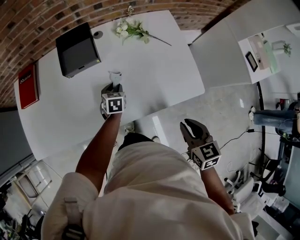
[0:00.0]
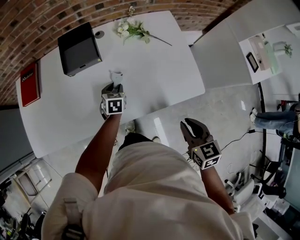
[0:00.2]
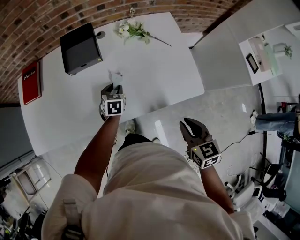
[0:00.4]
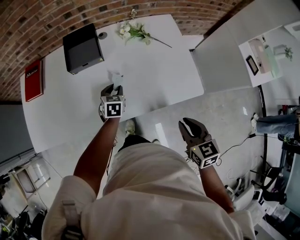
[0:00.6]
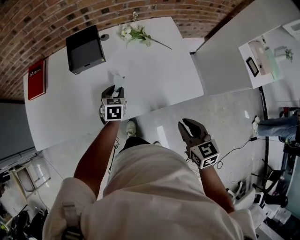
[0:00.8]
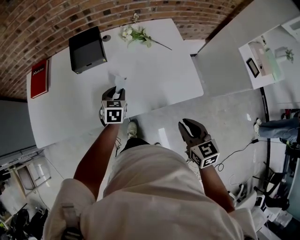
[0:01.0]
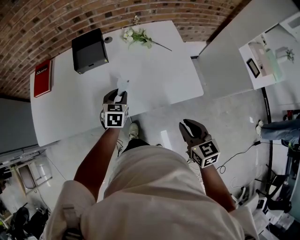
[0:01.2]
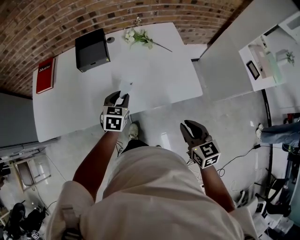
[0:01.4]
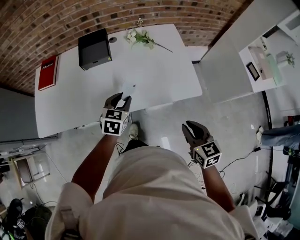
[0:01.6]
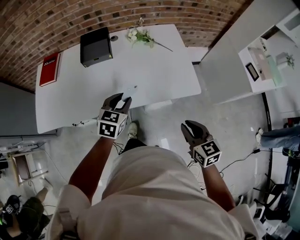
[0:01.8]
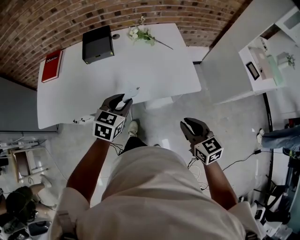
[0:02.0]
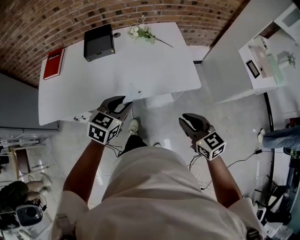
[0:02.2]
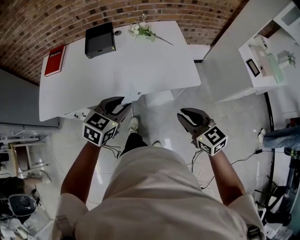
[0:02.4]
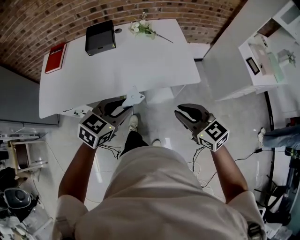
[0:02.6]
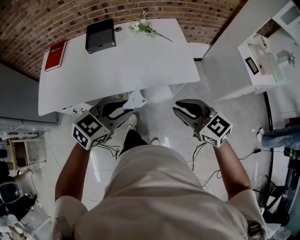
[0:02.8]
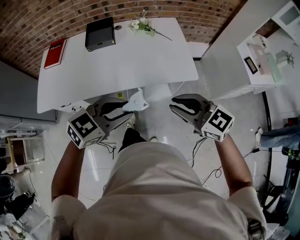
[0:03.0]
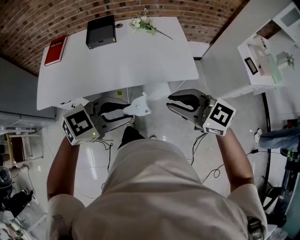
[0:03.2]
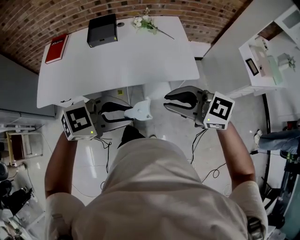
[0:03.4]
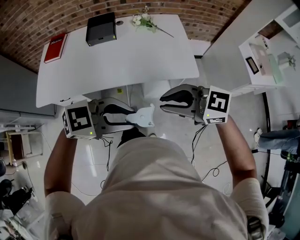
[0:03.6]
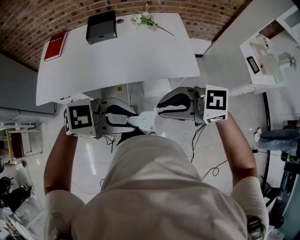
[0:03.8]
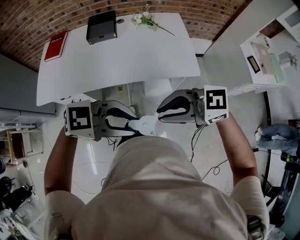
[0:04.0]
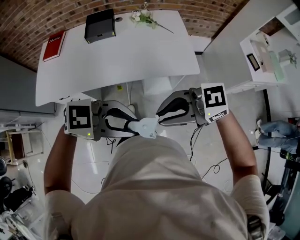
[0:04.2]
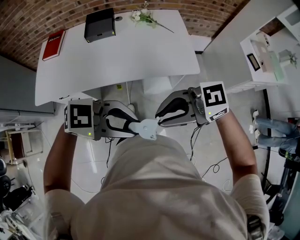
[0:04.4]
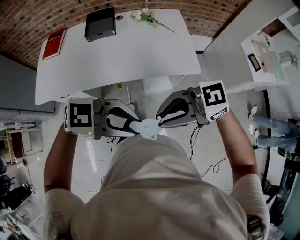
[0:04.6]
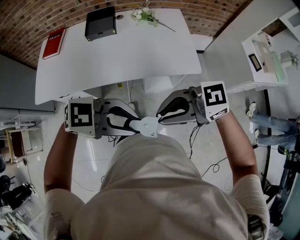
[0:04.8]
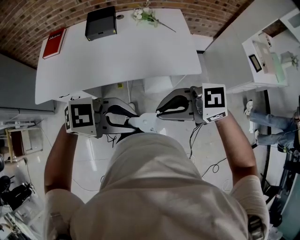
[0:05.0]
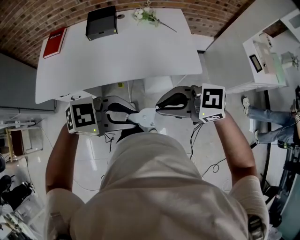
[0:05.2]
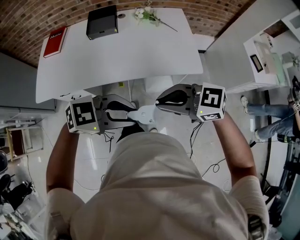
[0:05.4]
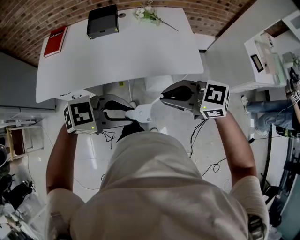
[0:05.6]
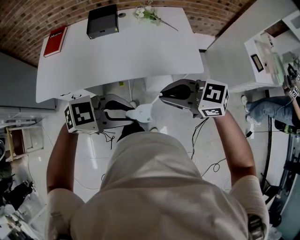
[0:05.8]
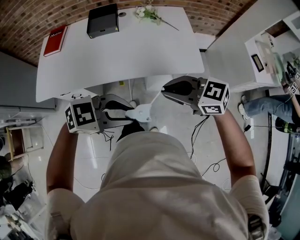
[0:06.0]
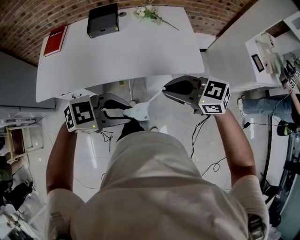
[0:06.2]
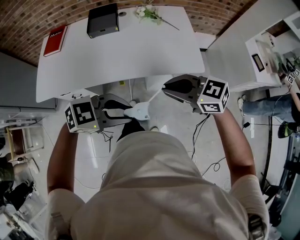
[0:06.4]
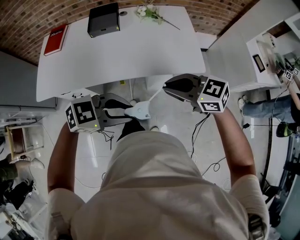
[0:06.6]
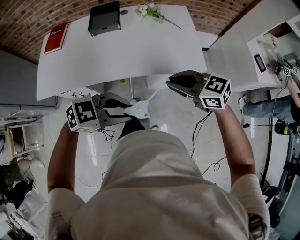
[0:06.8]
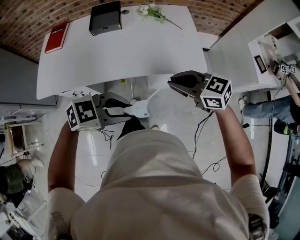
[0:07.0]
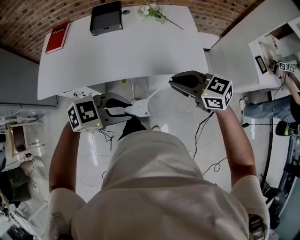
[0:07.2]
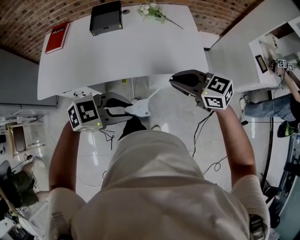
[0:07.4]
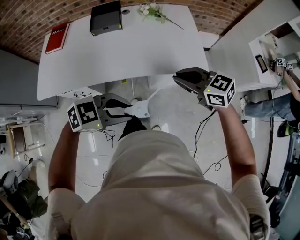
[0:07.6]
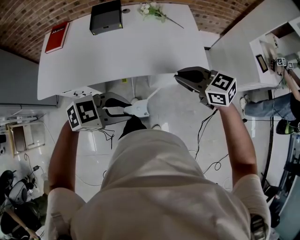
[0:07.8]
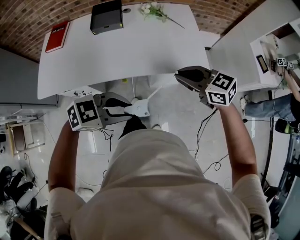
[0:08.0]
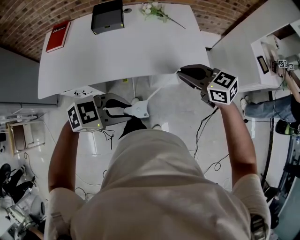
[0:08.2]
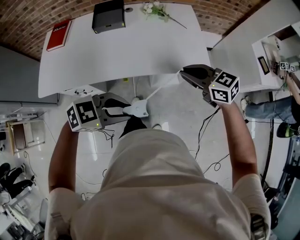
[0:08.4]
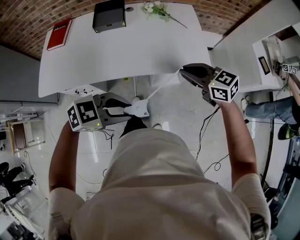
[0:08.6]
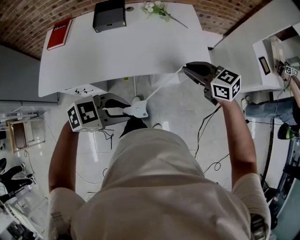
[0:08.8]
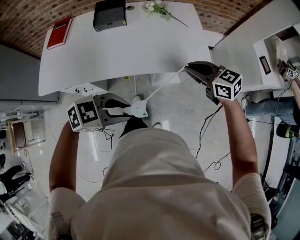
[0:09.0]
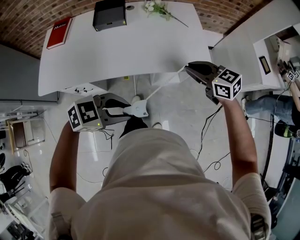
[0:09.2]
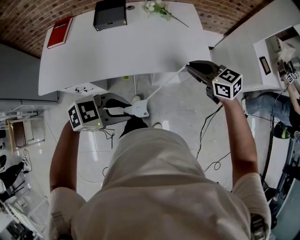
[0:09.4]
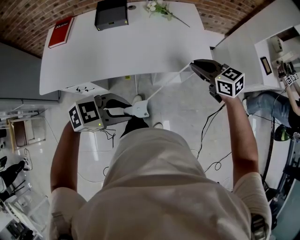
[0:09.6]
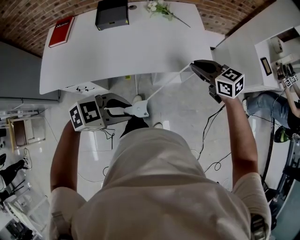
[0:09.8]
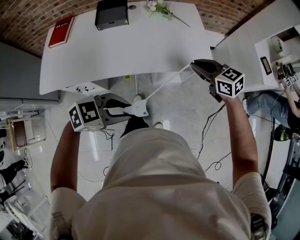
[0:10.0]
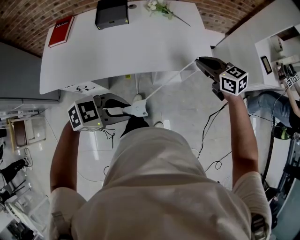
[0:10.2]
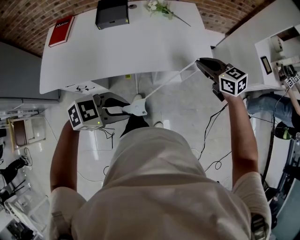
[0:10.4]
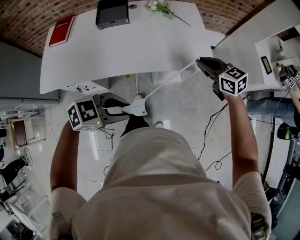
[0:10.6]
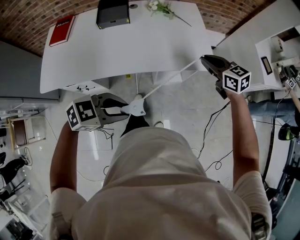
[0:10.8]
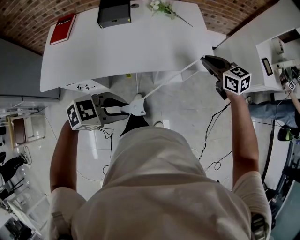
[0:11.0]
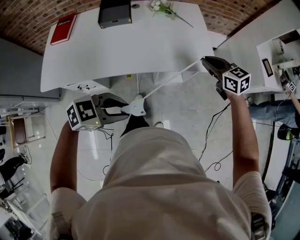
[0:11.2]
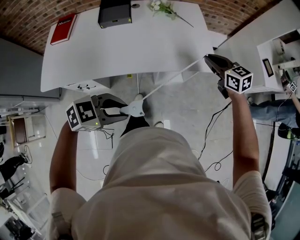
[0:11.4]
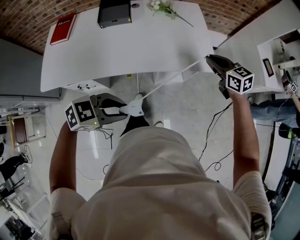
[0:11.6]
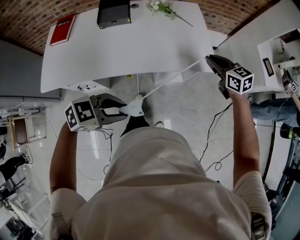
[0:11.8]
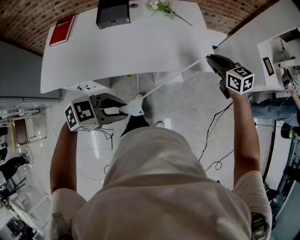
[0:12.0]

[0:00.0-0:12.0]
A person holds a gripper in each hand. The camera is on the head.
0:00.0 to 0:01.6: The right gripper moves backward, some 10 cm. The left gripper travels upward and backward by roughly 20 cm.
0:01.6 to 0:03.0: The left gripper goes about 25 cm backward and upward, and changes its angle by roughly 40 degrees. The right gripper shifts roughly 15 cm upward, backward and to the left, and swivels some 40 degrees.
0:03.0 to 0:04.4: The left gripper shifts by about 10 cm, and swivels about 40 degrees, while the right gripper changes place by about 10 cm, and swivels some 50 degrees.
0:04.4 to 0:06.0: The left gripper heads downward, covering approximately 5 cm. The right gripper moves roughly 10 cm, and changes its angle by approximately 30 degrees.
0:06.0 to 0:07.6: The right gripper ends up approximately 10 cm from where it was.
0:07.6 to 0:09.0: The right gripper changes place by about 5 cm.
0:09.0 to 0:10.4: The right gripper ends up about 5 cm from where it was.
0:10.4 to 0:12.0: The right gripper moves roughly 5 cm.

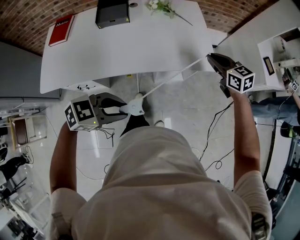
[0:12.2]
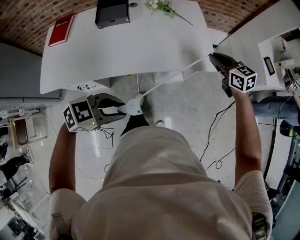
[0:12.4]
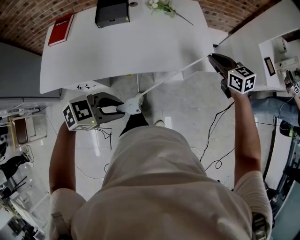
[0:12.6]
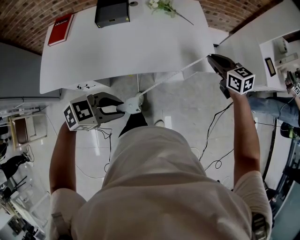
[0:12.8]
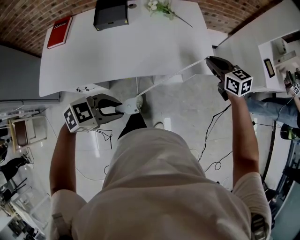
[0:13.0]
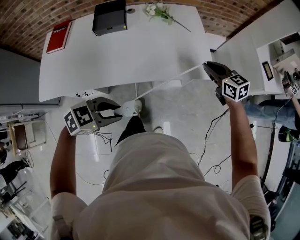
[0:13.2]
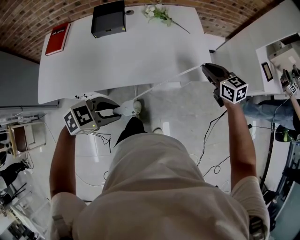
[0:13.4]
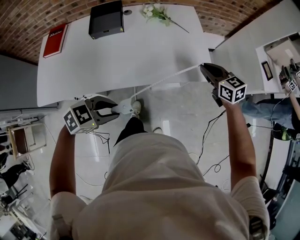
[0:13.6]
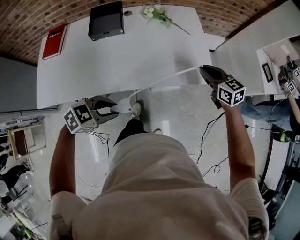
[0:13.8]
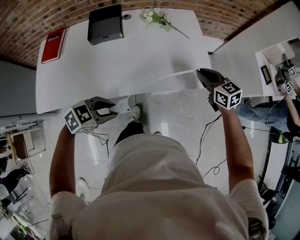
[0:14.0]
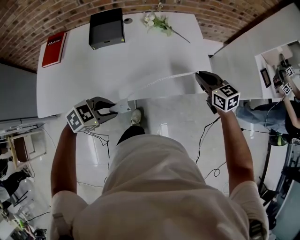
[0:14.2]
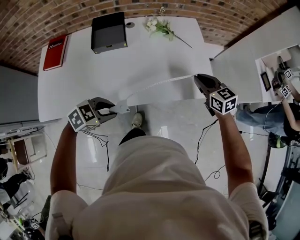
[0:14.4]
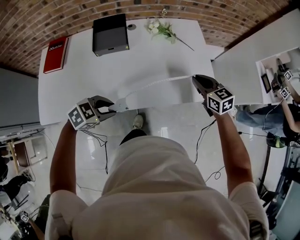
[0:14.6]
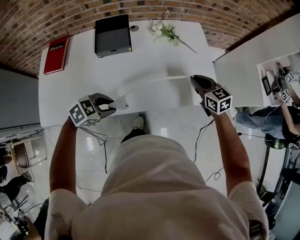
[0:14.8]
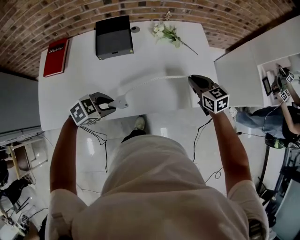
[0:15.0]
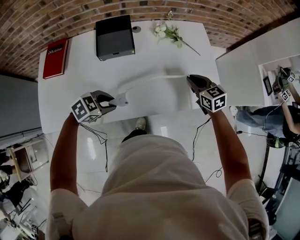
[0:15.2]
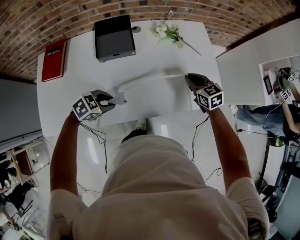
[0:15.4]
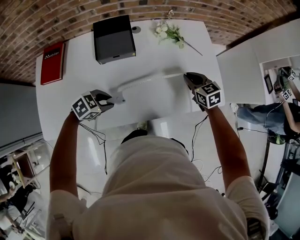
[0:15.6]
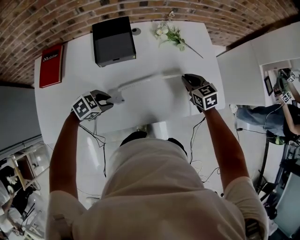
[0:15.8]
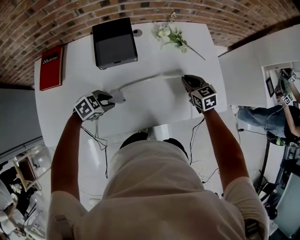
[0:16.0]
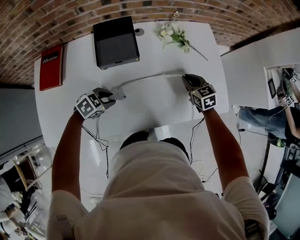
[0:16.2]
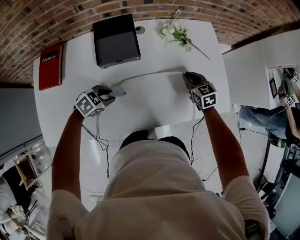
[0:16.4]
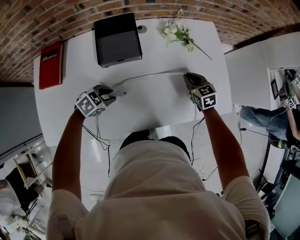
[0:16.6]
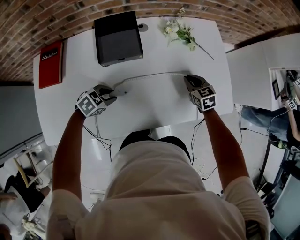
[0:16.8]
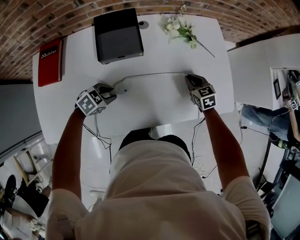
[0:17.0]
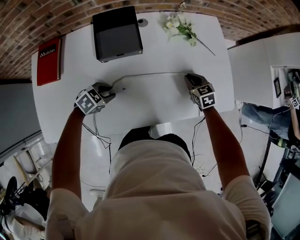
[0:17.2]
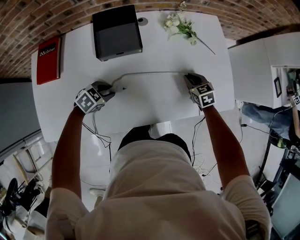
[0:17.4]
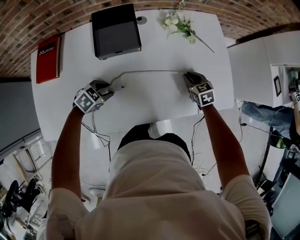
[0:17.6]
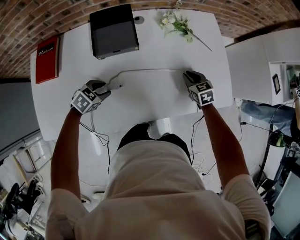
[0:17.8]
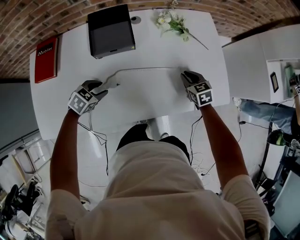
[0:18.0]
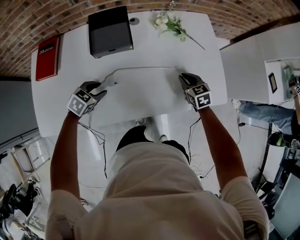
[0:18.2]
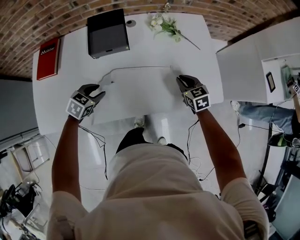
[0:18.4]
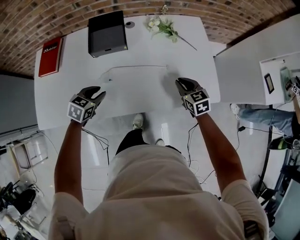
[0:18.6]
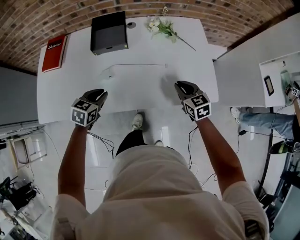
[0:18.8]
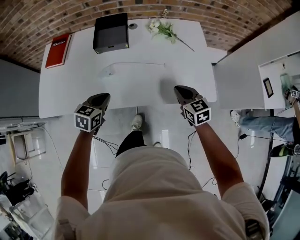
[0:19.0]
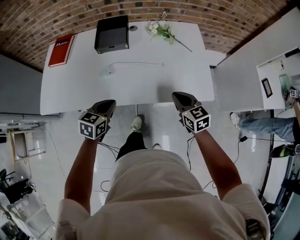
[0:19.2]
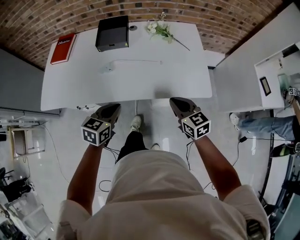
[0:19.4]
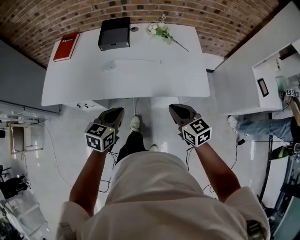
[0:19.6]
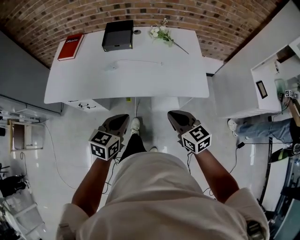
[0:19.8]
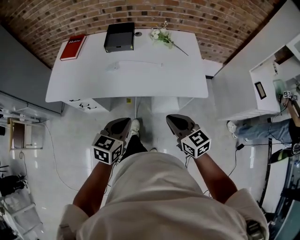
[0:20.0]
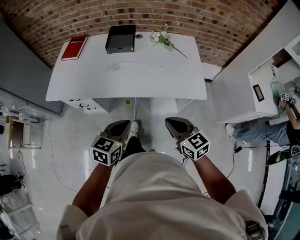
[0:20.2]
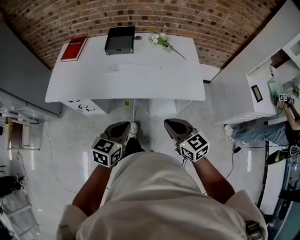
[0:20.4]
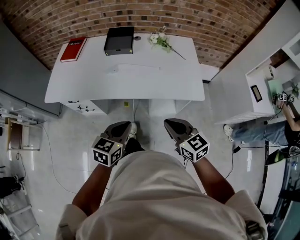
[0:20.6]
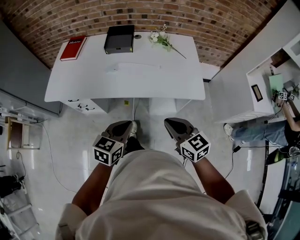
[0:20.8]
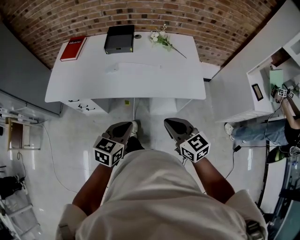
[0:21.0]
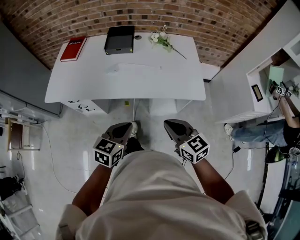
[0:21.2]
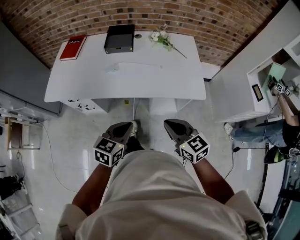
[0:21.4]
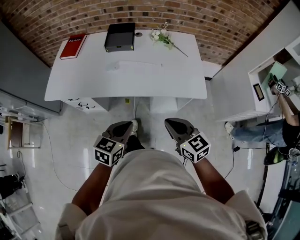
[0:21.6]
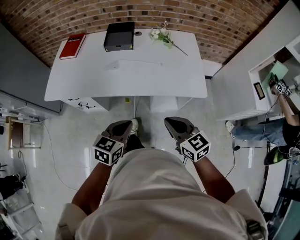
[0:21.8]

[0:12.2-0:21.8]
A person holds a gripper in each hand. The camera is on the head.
0:12.2 to 0:13.8: The left gripper moves approximately 10 cm.
0:13.8 to 0:15.4: The right gripper goes approximately 20 cm to the left and downward, while the left gripper shifts approximately 25 cm to the left, forward and downward.
0:15.4 to 0:17.0: The right gripper shifts approximately 10 cm downward. The left gripper travels downward, to the left and forward by approximately 10 cm.
0:17.0 to 0:18.6: The right gripper moves backward, upward and to the right, roughly 10 cm; the left gripper goes some 5 cm upward, and rotates some 30 degrees.
0:18.6 to 0:20.2: The left gripper moves backward, to the right and upward, some 40 cm, rotates some 30 degrees, and closes up, while the right gripper heads backward and upward, covering approximately 35 cm, and changes its angle by some 20 degrees.
0:20.2 to 0:21.8: The grippers move only a little.

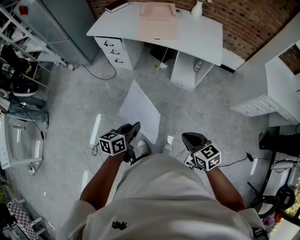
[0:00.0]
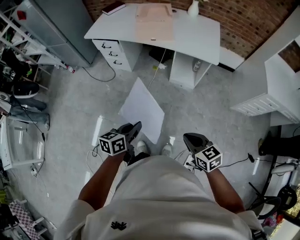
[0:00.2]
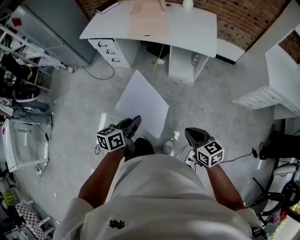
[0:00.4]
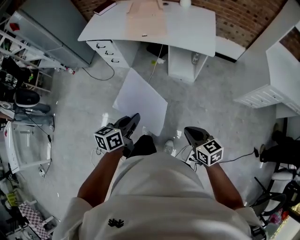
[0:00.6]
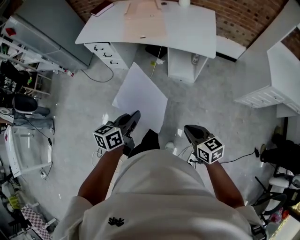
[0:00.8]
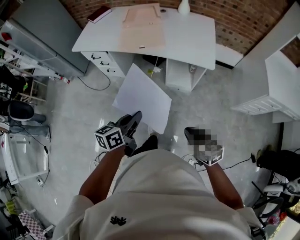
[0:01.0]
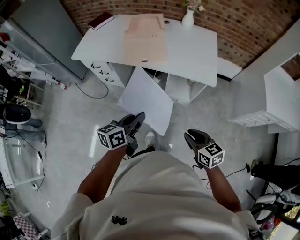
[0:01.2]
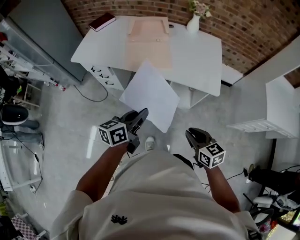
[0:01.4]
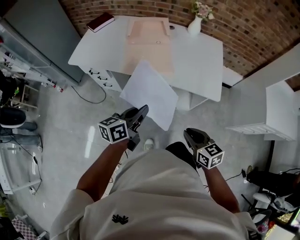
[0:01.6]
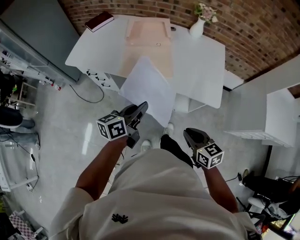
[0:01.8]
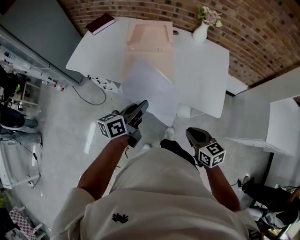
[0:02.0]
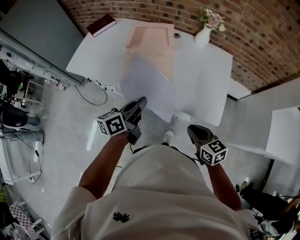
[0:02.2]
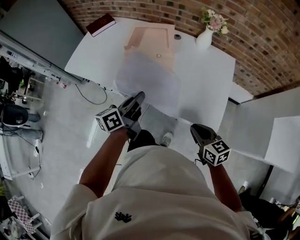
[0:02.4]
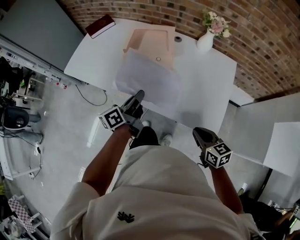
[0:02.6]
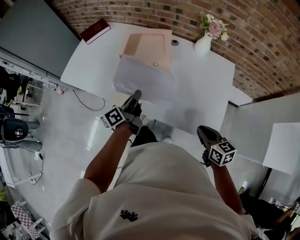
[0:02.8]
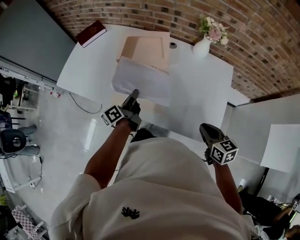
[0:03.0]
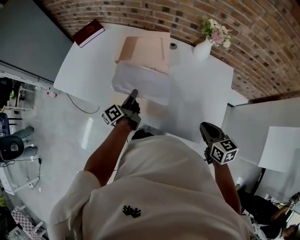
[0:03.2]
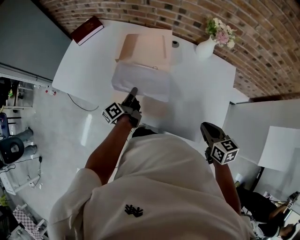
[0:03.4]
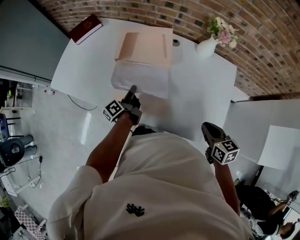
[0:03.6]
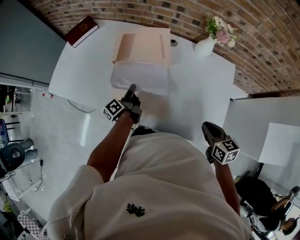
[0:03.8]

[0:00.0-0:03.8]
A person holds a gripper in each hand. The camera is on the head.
0:00.0 to 0:01.2: Both grippers move forward and to the right, approximately 25 cm.
0:01.2 to 0:02.6: Both grippers are carried forward, some 40 cm. The left gripper turns by about 30 degrees.
0:02.6 to 0:03.8: The left gripper is displaced forward and downward by approximately 25 cm, and changes its angle by some 20 degrees. The right gripper heads forward, covering approximately 15 cm.
